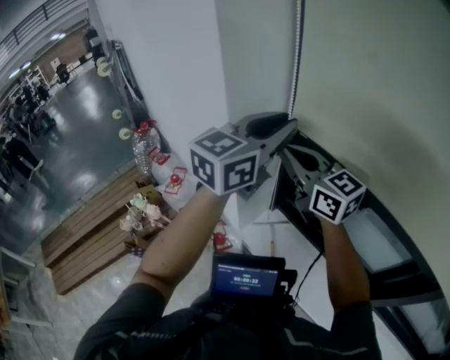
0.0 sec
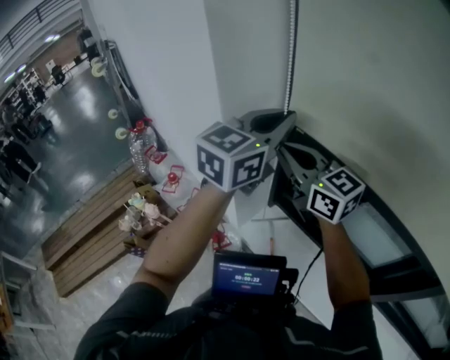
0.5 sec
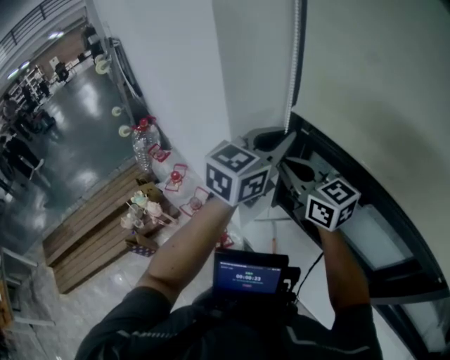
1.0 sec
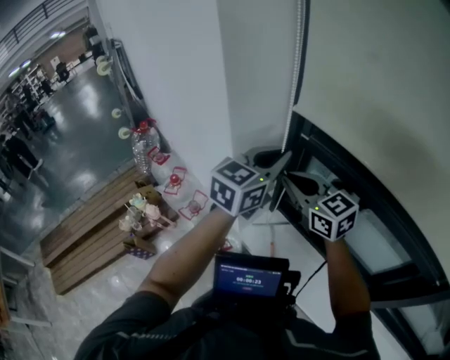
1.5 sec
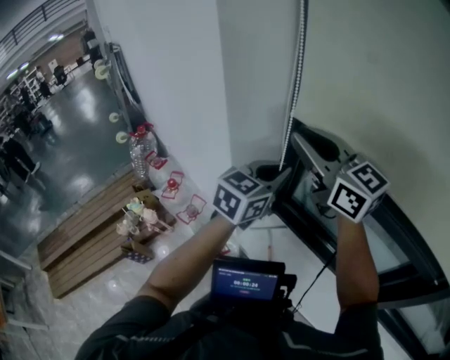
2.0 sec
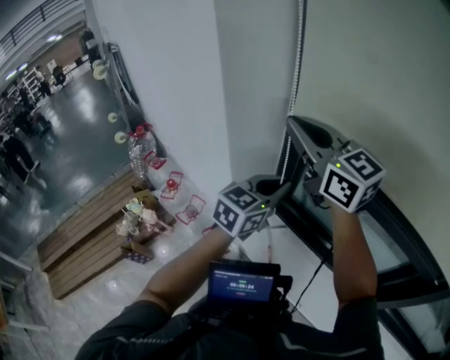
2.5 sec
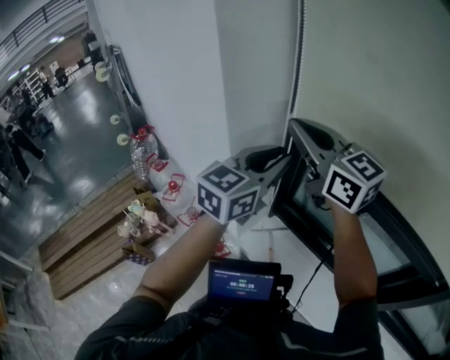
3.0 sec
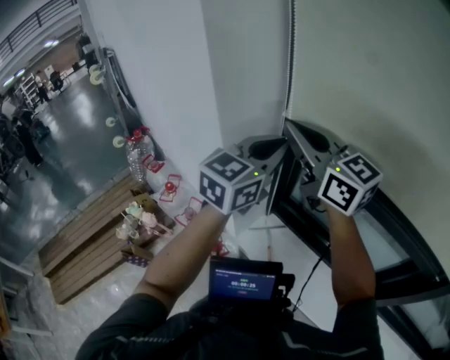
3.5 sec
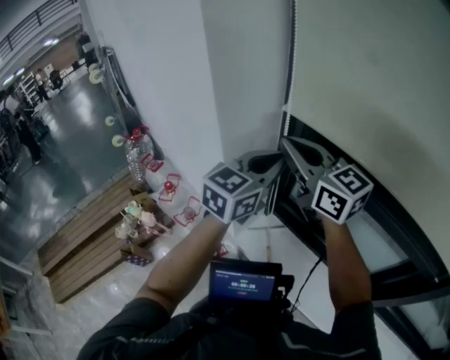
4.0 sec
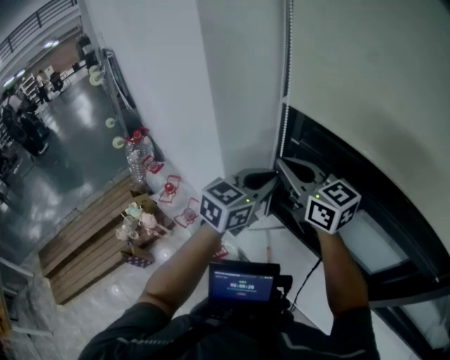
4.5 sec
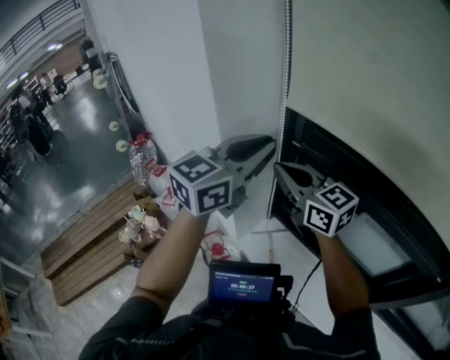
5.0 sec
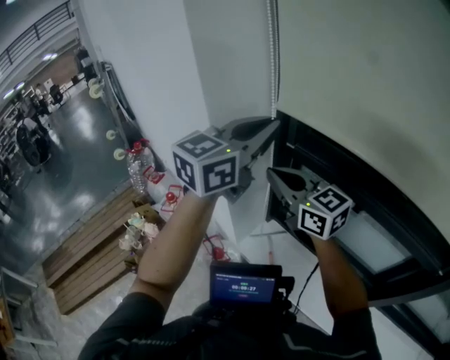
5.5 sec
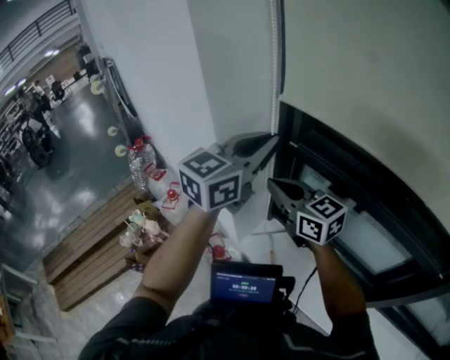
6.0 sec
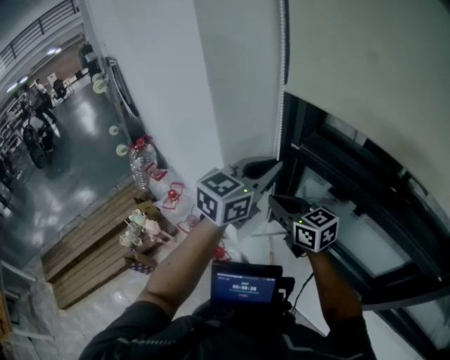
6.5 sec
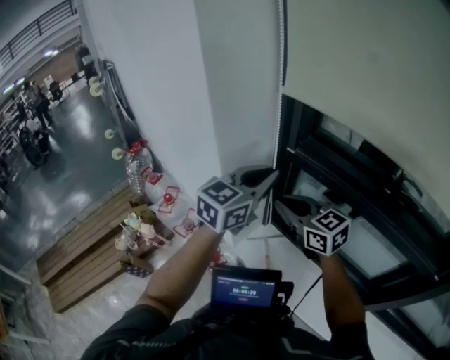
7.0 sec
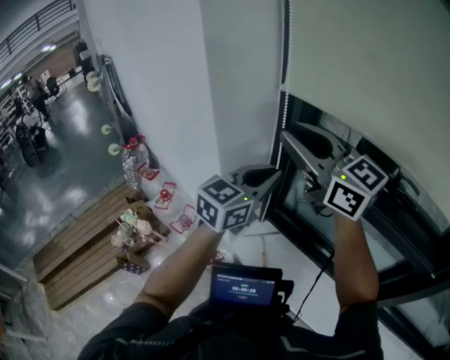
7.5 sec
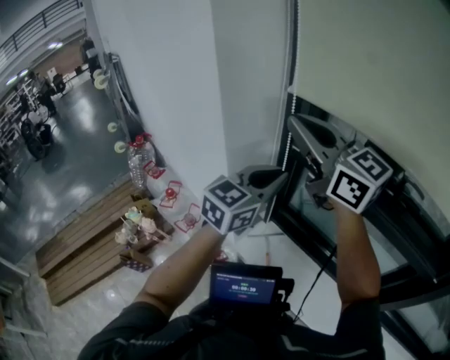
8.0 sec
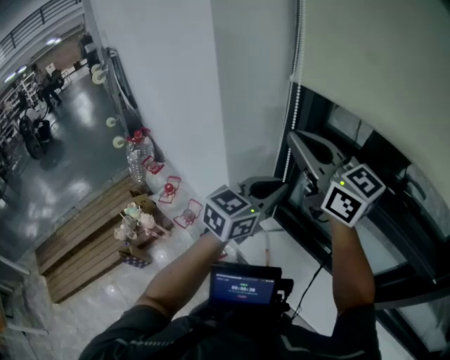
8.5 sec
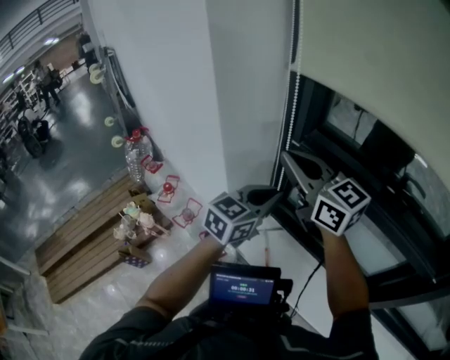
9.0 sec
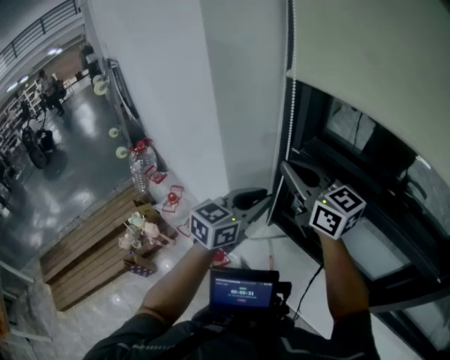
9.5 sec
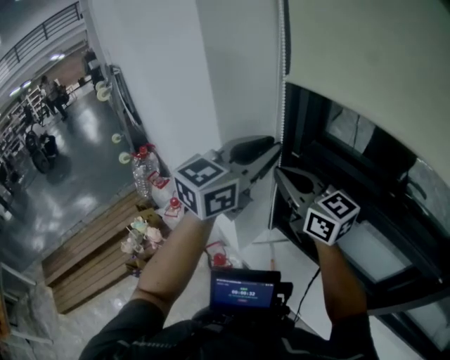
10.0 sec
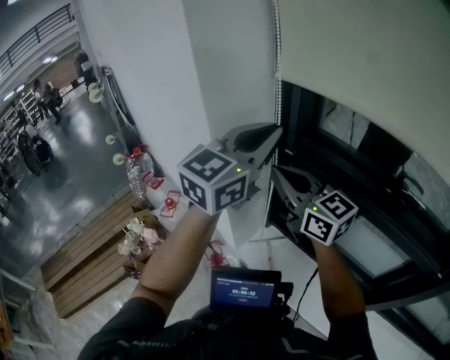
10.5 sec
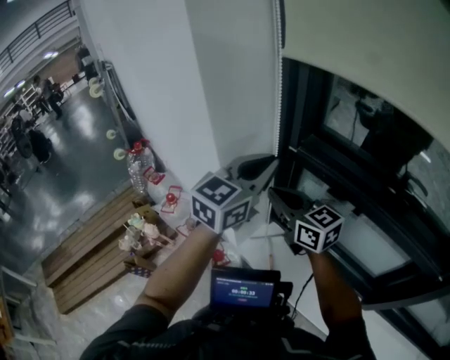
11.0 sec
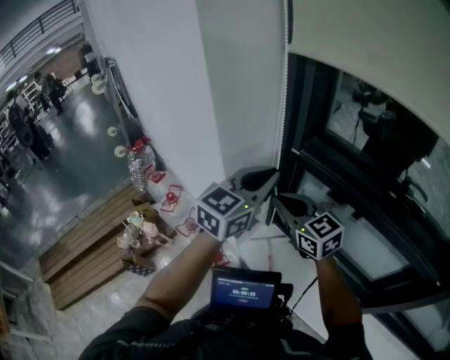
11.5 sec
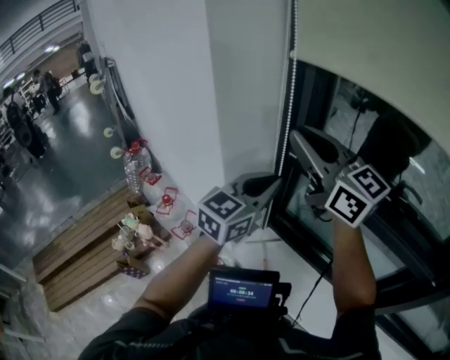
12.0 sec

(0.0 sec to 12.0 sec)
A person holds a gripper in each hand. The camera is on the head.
0.0 sec - 2.0 sec: The right gripper travels upward by about 10 cm, and opens up. The left gripper shifts approximately 10 cm downward.
2.0 sec - 4.0 sec: The right gripper closes up; the left gripper goes upward and returns, about 10 cm each way, and opens, then closes again.
4.0 sec - 6.0 sec: The left gripper swings up and down, about 15 cm each way, with 2 reversals. The right gripper goes about 10 cm downward.
6.0 sec - 8.0 sec: The right gripper shifts some 20 cm upward, and opens, then closes again; the left gripper goes some 5 cm downward.
8.0 sec - 10.0 sec: The right gripper travels downward by some 10 cm. The left gripper moves upward, some 10 cm.
10.0 sec - 12.0 sec: The right gripper is displaced upward by about 10 cm. The left gripper travels downward by approximately 10 cm.

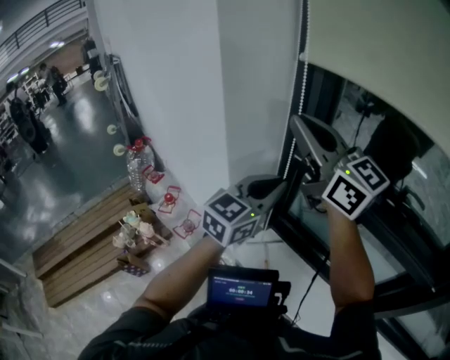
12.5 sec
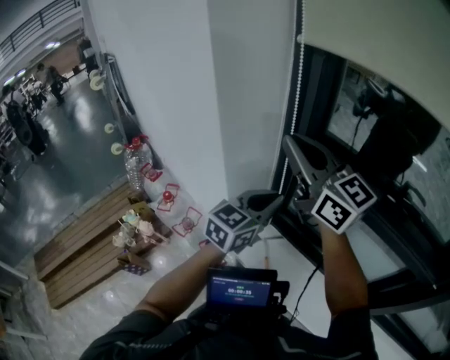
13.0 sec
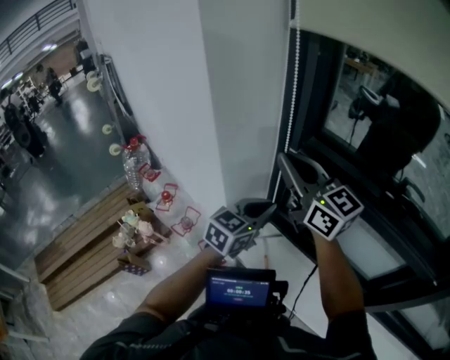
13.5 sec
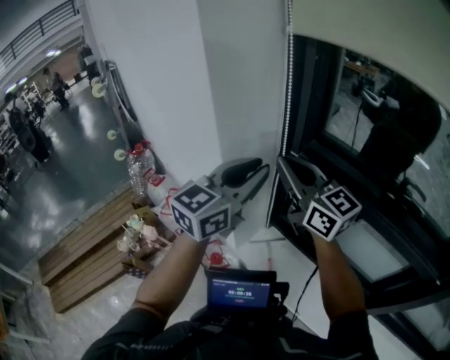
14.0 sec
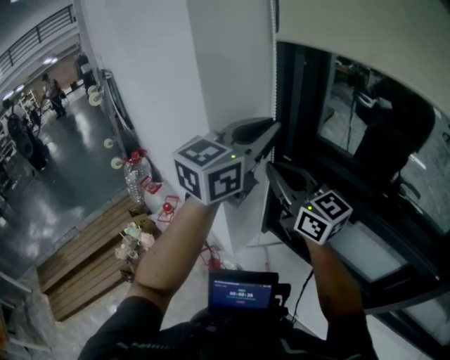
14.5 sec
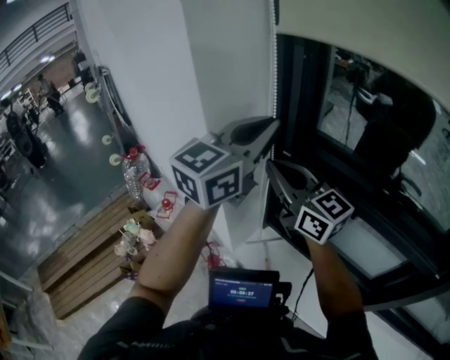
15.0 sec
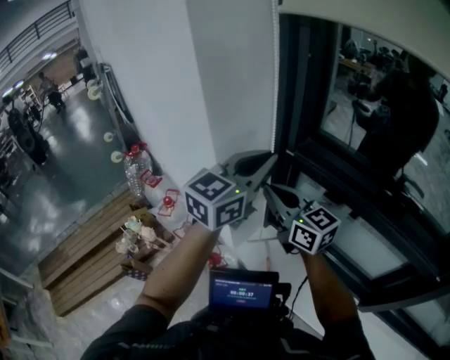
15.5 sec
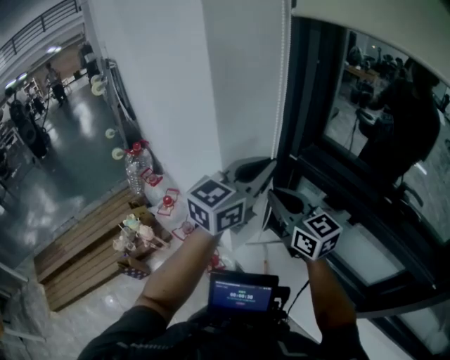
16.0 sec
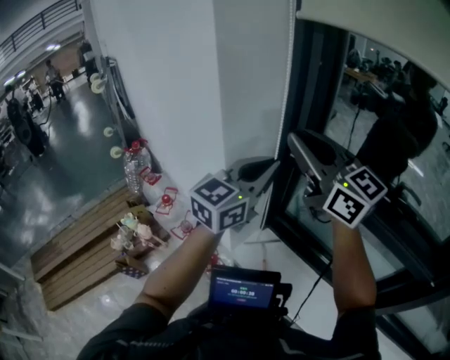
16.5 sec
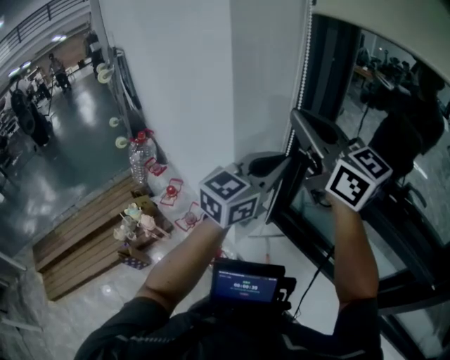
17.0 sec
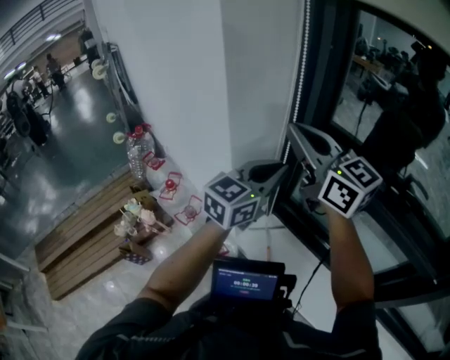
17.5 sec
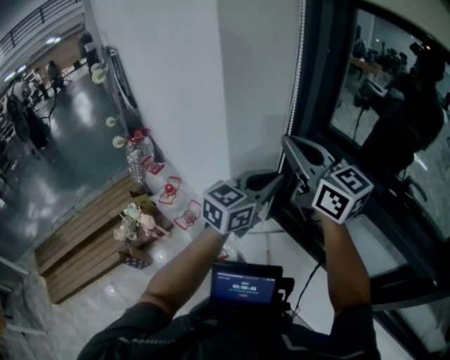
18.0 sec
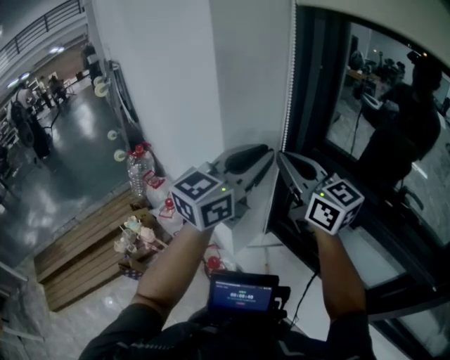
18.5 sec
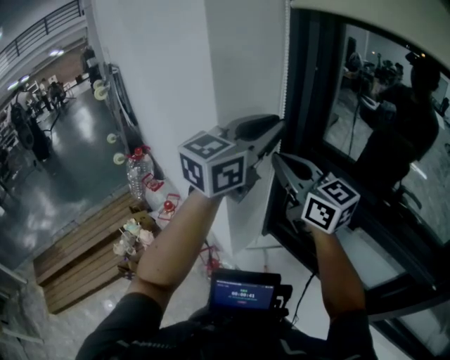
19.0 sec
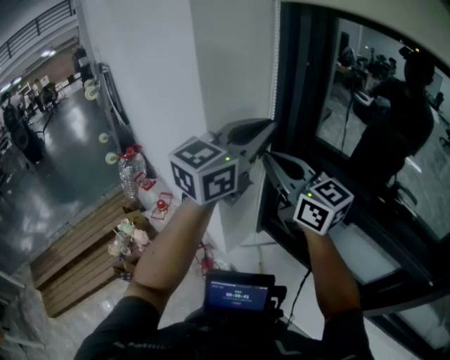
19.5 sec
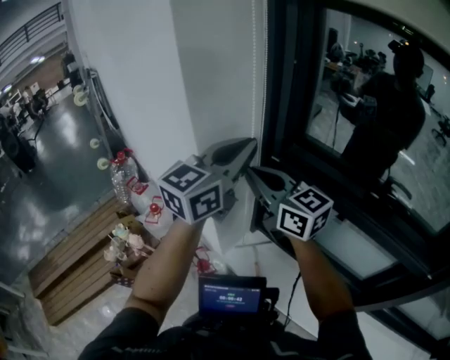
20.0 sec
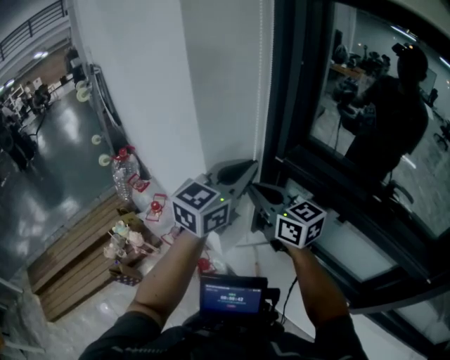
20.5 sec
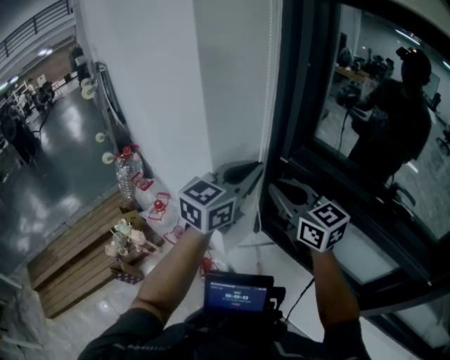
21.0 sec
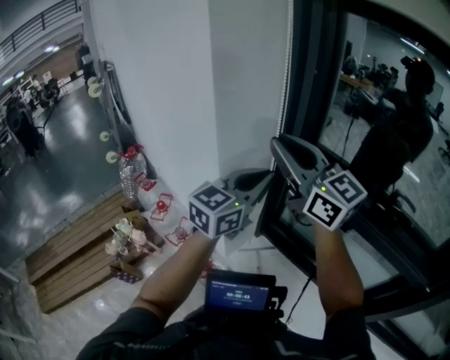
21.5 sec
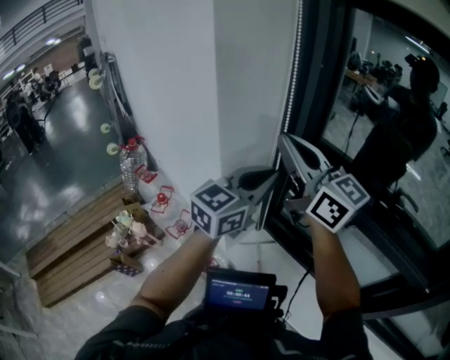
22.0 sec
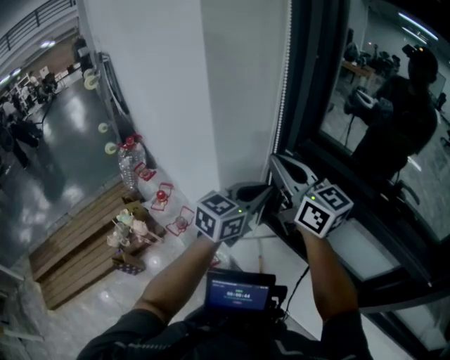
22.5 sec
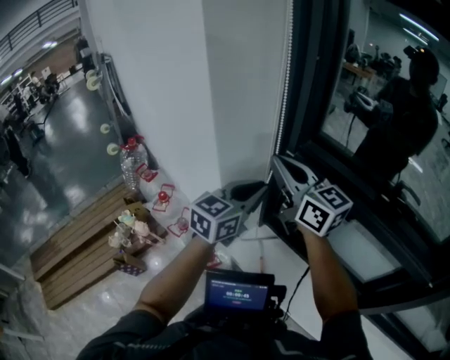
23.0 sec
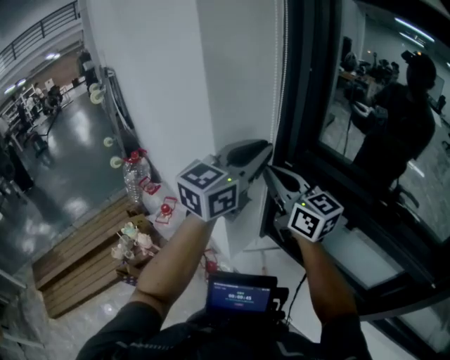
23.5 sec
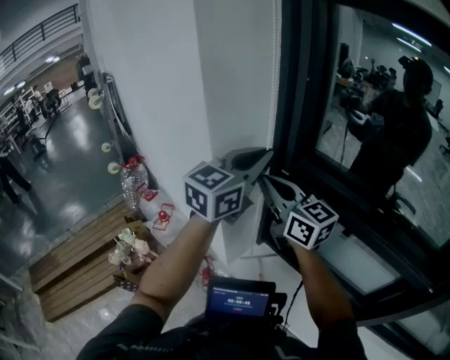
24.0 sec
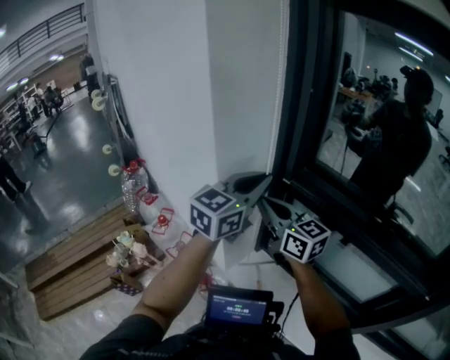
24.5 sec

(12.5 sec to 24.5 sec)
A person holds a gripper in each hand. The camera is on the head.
12.5 sec - 14.5 sec: The left gripper heads upward, covering roughly 15 cm. Meanwhile the right gripper heads downward, covering approximately 10 cm.
14.5 sec - 16.5 sec: The right gripper shifts approximately 10 cm upward, while the left gripper shifts about 10 cm downward.
16.5 sec - 18.5 sec: The right gripper moves downward, roughly 5 cm. The left gripper goes downward and returns, some 10 cm each way.
18.5 sec - 20.5 sec: The left gripper moves downward, roughly 5 cm; the right gripper moves downward, roughly 10 cm.
20.5 sec - 22.5 sec: The right gripper is displaced upward by about 5 cm. Meanwhile the left gripper goes about 10 cm downward.
22.5 sec - 24.5 sec: The left gripper travels upward by some 10 cm. The right gripper shifts roughly 5 cm downward.

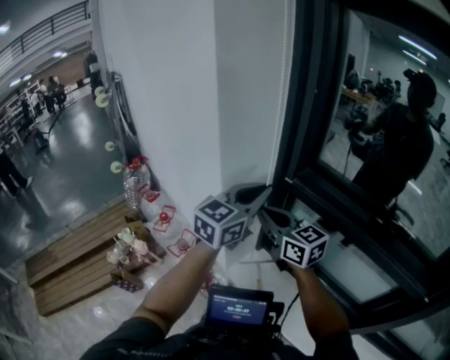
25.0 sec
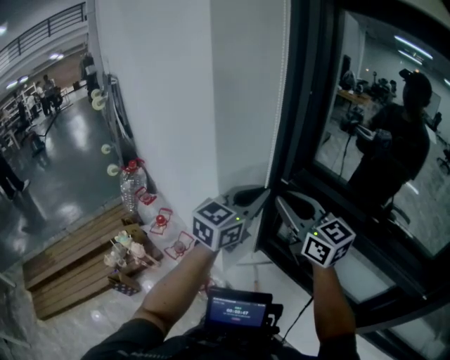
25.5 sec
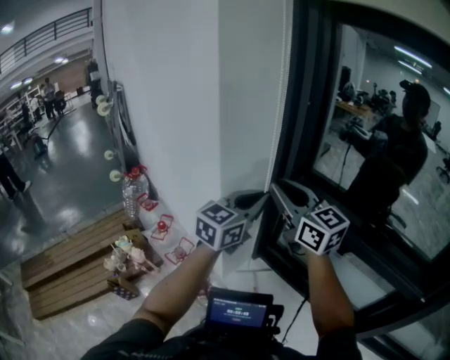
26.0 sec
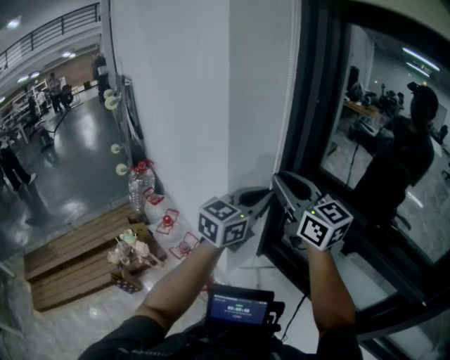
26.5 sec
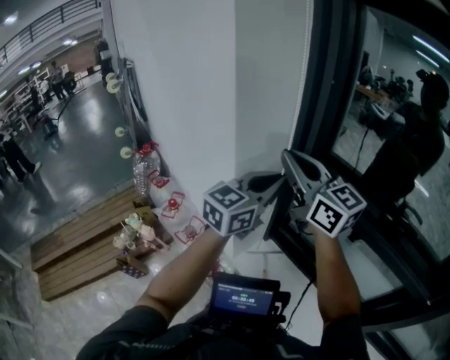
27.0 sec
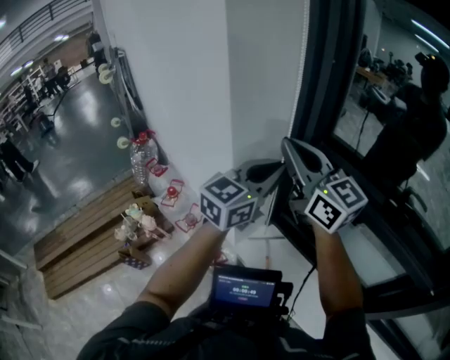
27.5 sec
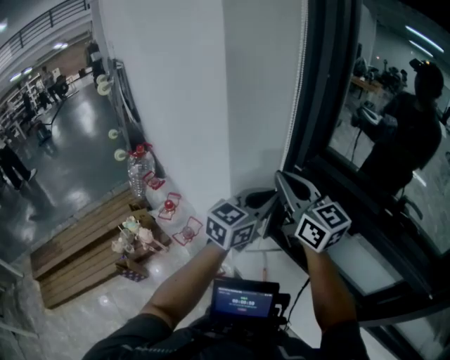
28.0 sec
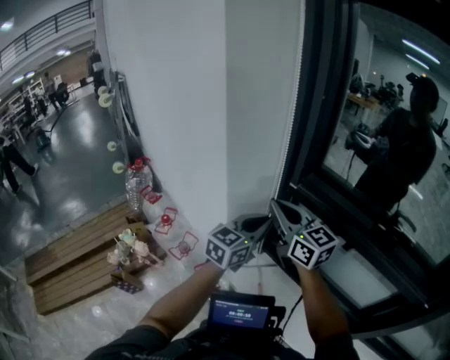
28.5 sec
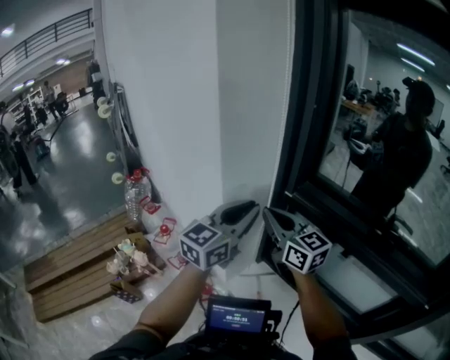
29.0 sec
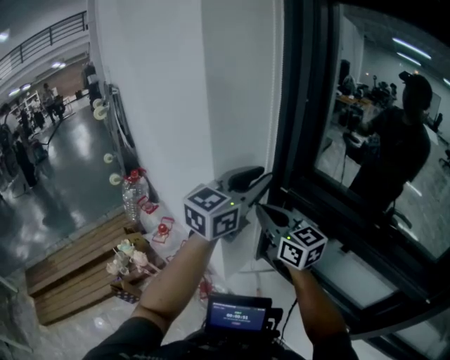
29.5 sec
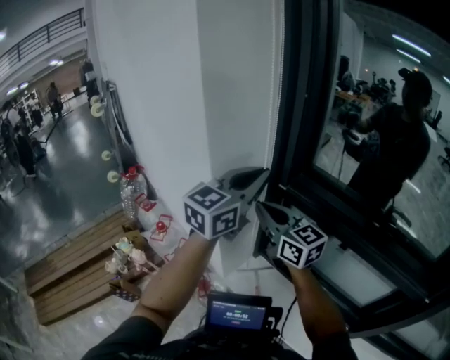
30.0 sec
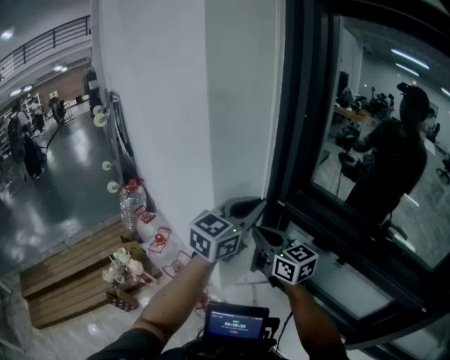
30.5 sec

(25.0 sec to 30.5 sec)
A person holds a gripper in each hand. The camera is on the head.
25.0 sec - 27.0 sec: The right gripper is displaced upward by about 15 cm.
27.0 sec - 28.5 sec: The two grippers go roughly 10 cm downward.
28.5 sec - 30.5 sec: The left gripper is displaced upward by approximately 10 cm, and opens and closes again.
